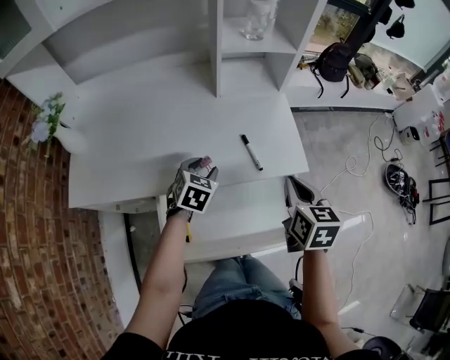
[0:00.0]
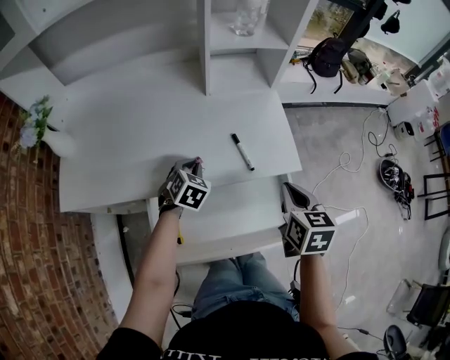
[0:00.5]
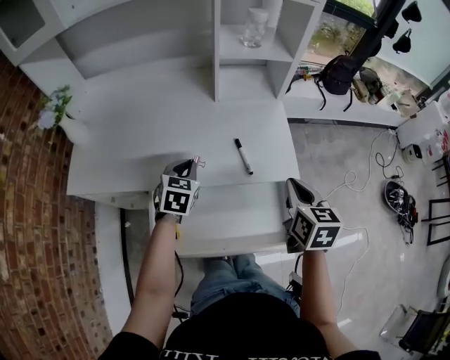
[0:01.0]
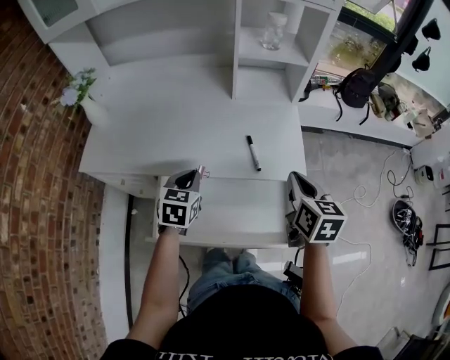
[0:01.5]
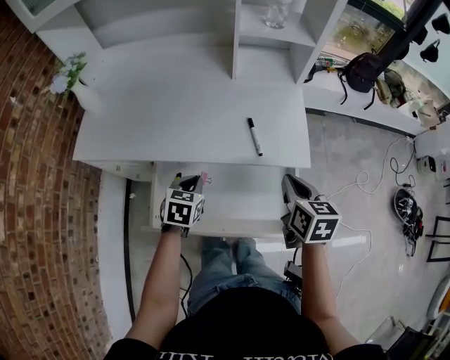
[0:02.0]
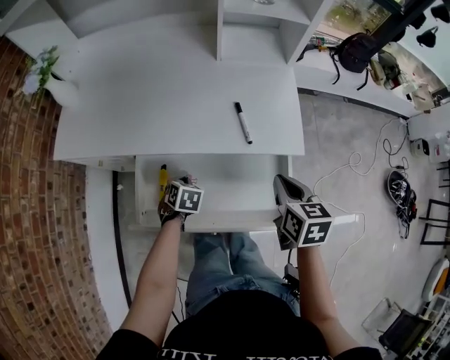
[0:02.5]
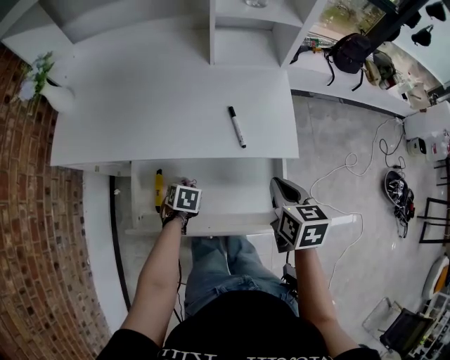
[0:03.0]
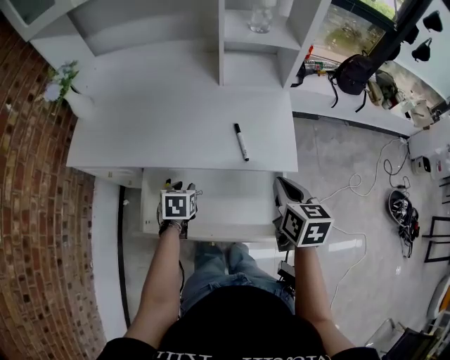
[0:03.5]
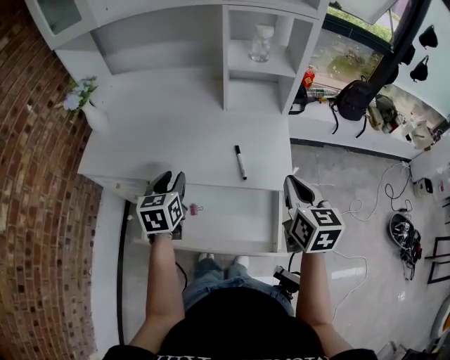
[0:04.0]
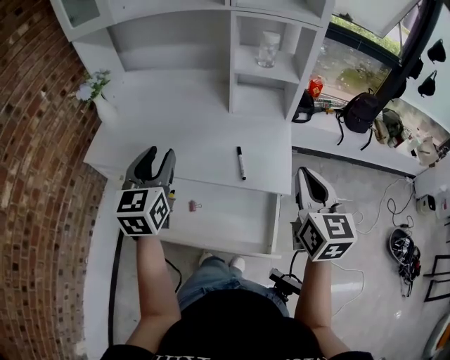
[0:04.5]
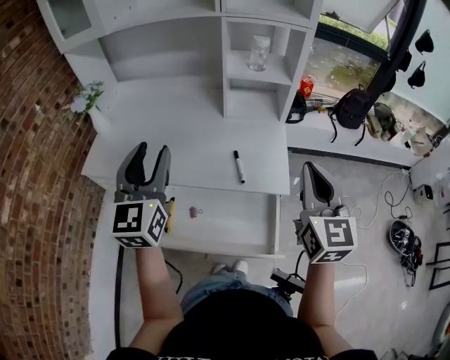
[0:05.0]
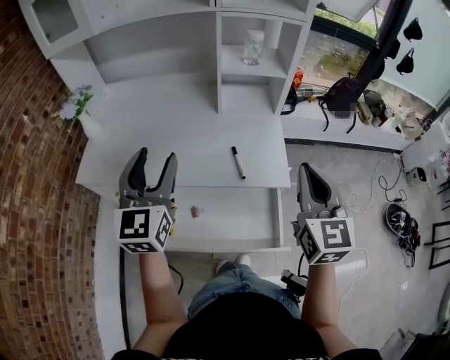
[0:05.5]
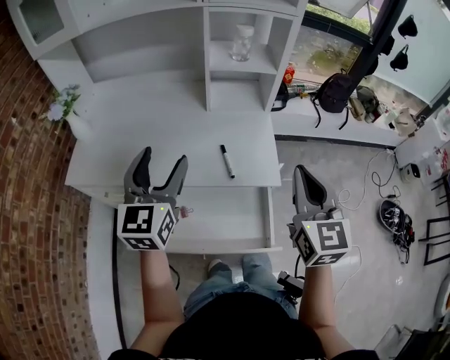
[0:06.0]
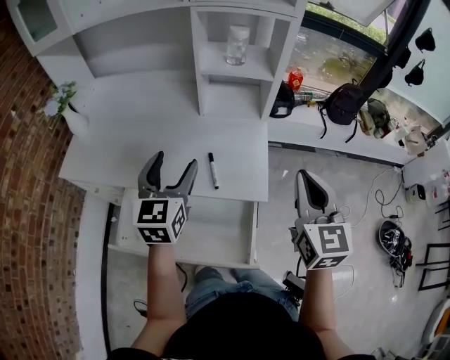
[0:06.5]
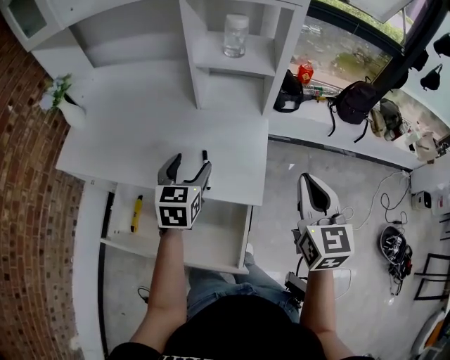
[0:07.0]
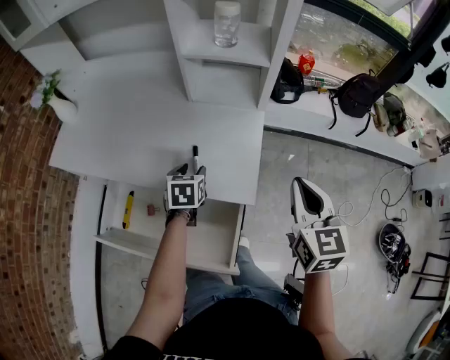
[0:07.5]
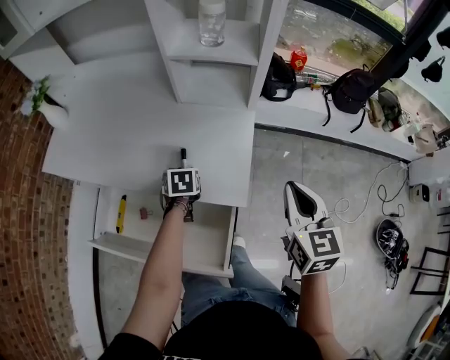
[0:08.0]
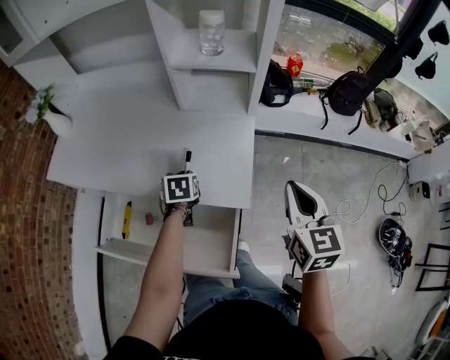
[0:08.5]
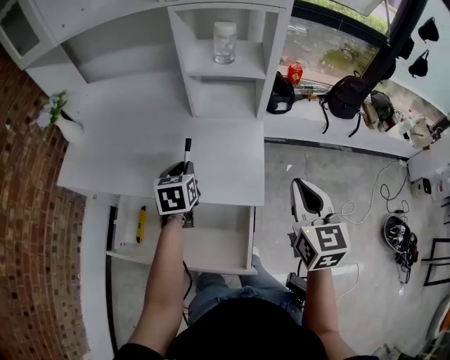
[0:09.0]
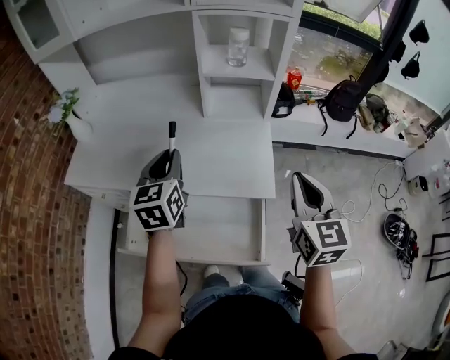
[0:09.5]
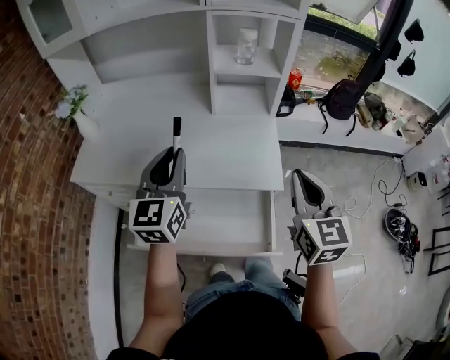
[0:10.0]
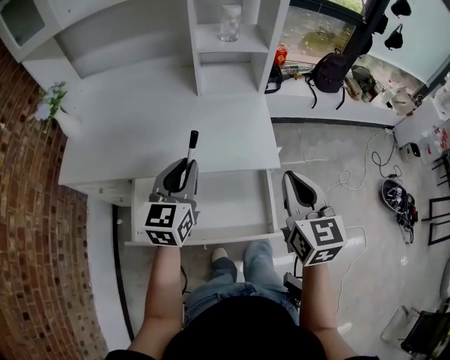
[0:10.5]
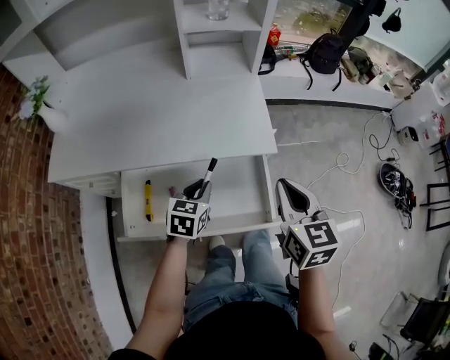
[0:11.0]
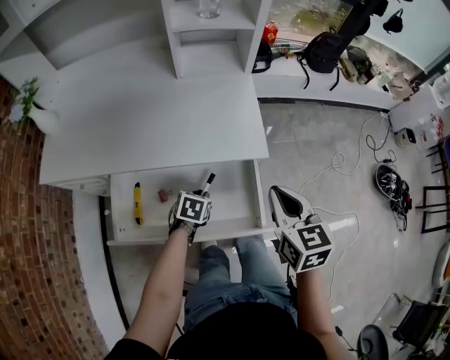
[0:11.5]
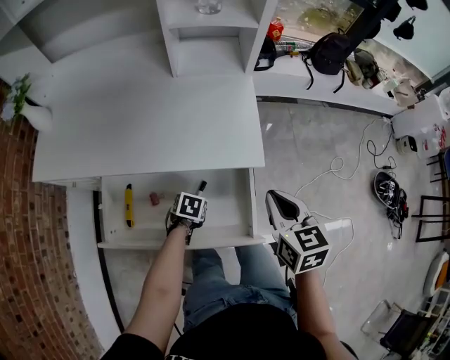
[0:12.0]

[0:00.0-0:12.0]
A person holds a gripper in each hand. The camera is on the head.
0:00.0 to 0:02.0: The left gripper is displaced backward by about 10 cm, changes its angle by roughly 20 degrees, and closes its fingers.
0:02.0 to 0:04.0: The grippers both shift upward by about 10 cm. The left gripper changes its angle by some 30 degrees.
0:04.0 to 0:06.0: The right gripper moves upward, approximately 10 cm, and turns by roughly 20 degrees, while the left gripper moves upward, approximately 15 cm, rotates some 30 degrees, and opens up.
0:06.0 to 0:08.0: The right gripper is displaced to the right, downward and forward by about 25 cm. The left gripper shifts about 35 cm downward and to the right, tilts its fingers approximately 60 degrees downward, and closes.
0:08.0 to 0:10.0: The left gripper shifts approximately 35 cm upward and to the left, and angles its fingers upward, by some 60 degrees, while the right gripper travels to the left, upward and backward by roughly 20 cm.
0:10.0 to 0:12.0: The right gripper shifts about 15 cm downward, and swivels about 30 degrees. The left gripper is displaced downward by some 40 cm, and points its fingers some 70 degrees further downward.

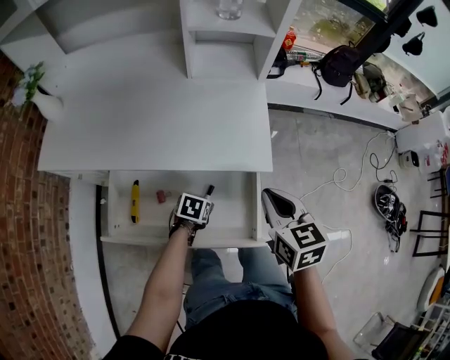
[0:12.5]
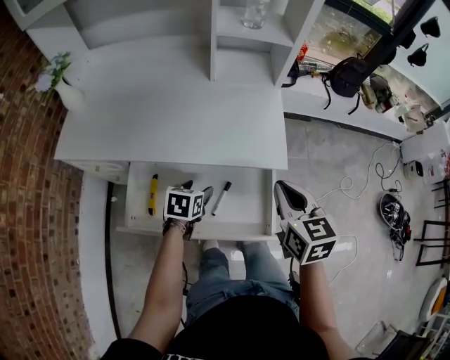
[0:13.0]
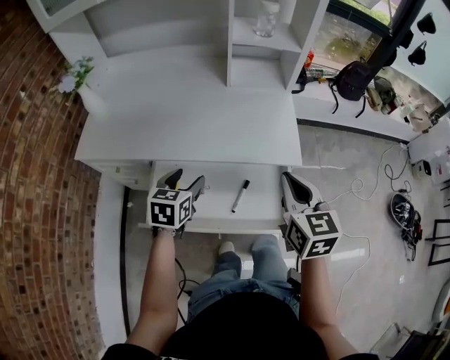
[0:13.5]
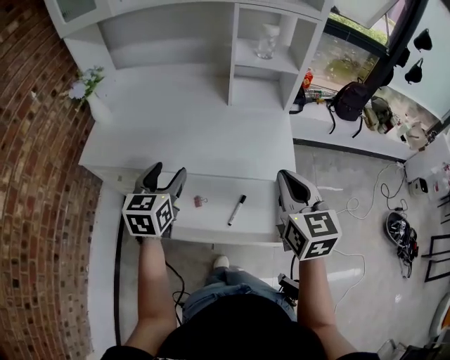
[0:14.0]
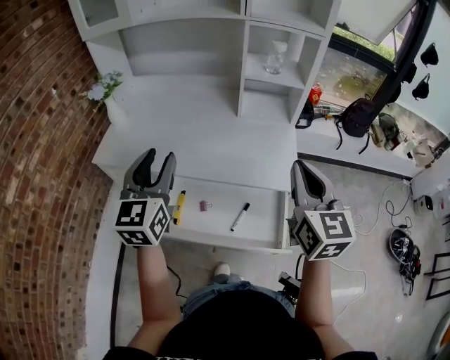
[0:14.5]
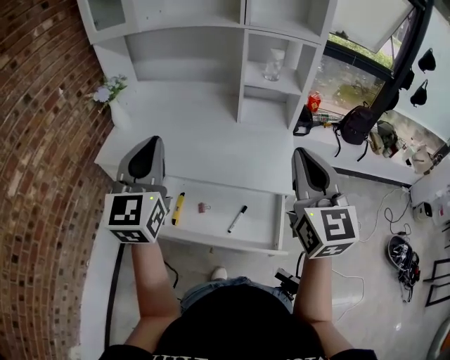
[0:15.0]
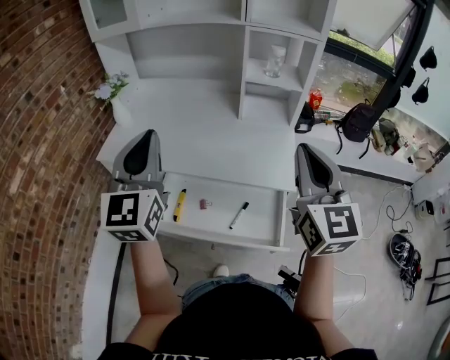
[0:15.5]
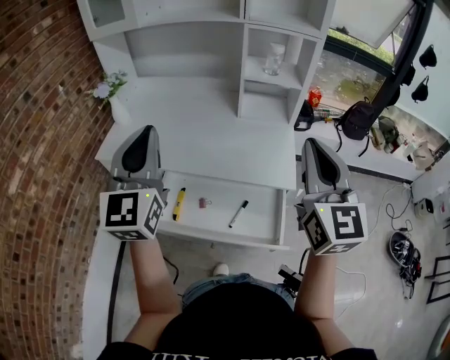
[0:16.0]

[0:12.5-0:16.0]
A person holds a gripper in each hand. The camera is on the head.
0:12.5 to 0:14.5: The left gripper travels upward and to the left by roughly 50 cm, and points its fingers about 60 degrees further upward, while the right gripper is displaced upward by some 20 cm, and rotates approximately 30 degrees.
0:14.5 to 0:16.0: The grippers both shift upward by about 10 cm.

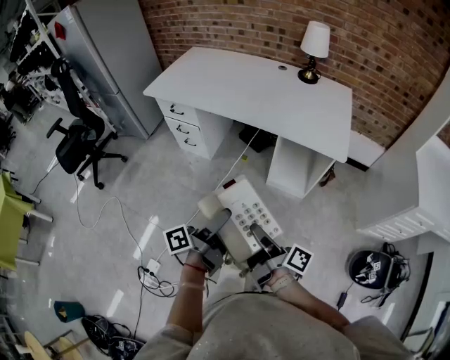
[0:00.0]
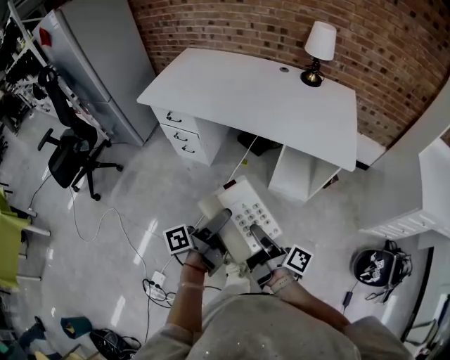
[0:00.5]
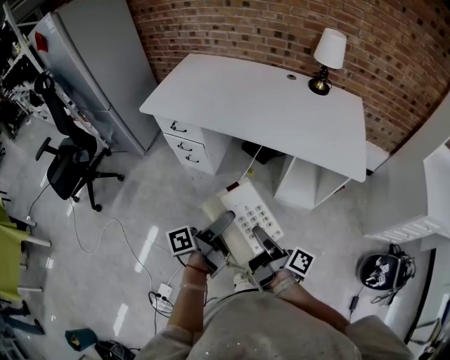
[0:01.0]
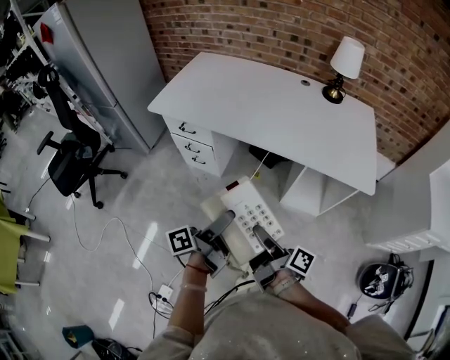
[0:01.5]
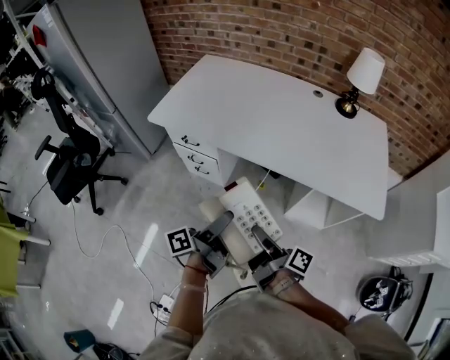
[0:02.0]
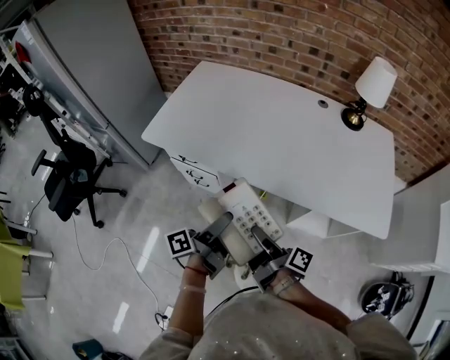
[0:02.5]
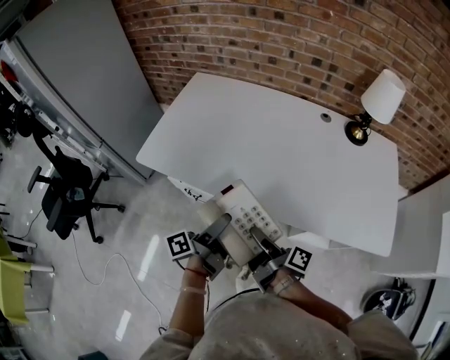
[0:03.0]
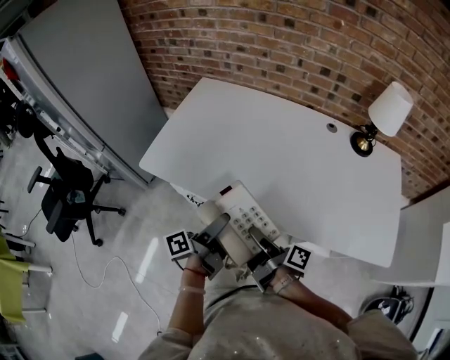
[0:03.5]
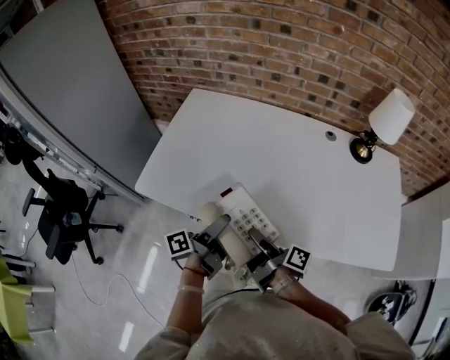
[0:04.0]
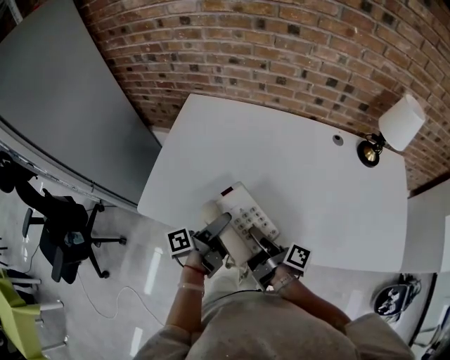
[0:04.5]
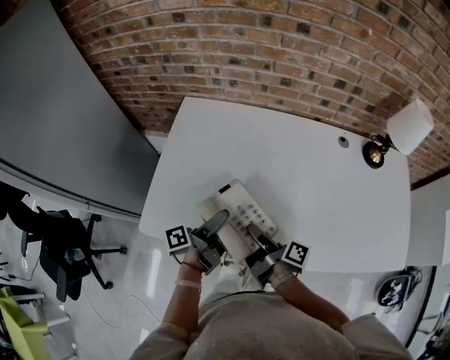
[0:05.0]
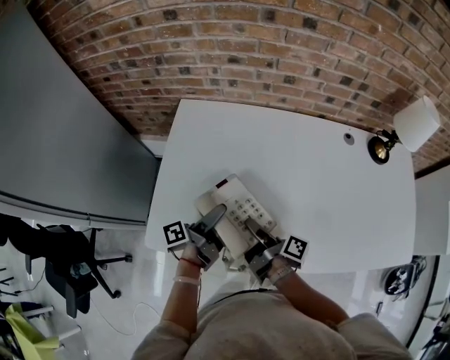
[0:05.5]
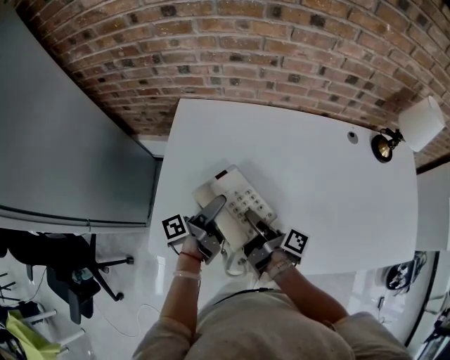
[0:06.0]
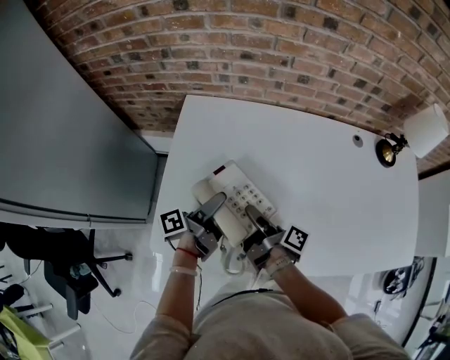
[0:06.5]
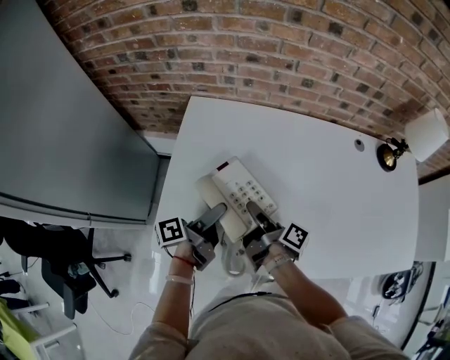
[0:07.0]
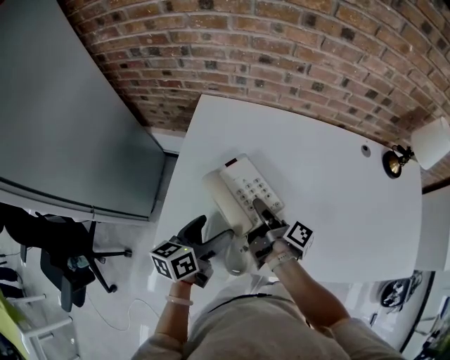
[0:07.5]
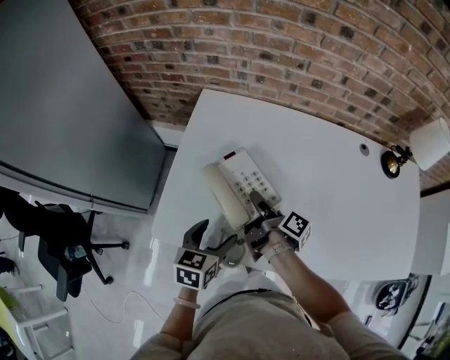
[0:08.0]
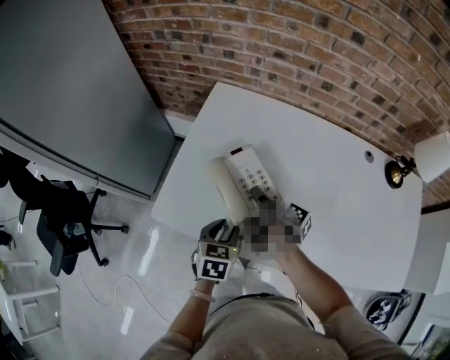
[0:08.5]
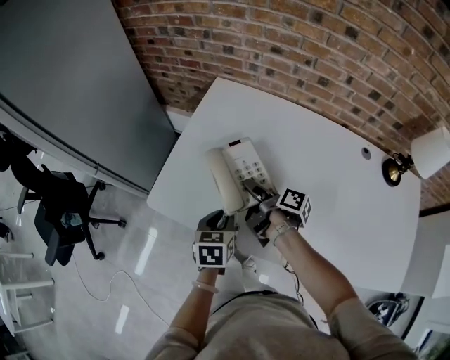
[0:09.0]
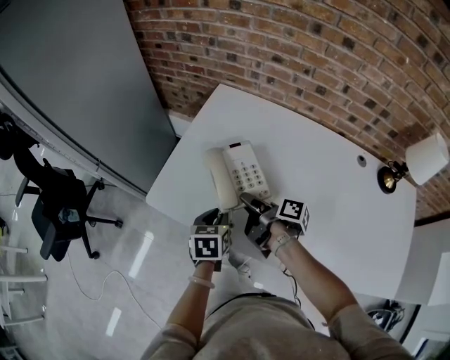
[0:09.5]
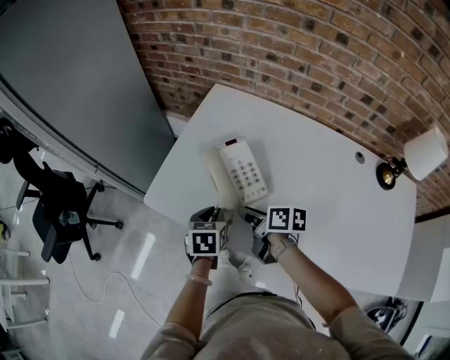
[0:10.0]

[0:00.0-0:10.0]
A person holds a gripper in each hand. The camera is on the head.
0:00.0 to 0:02.0: The left gripper ends up about 30 cm from where it was.
0:02.0 to 0:04.0: The left gripper changes place by about 30 cm.
0:04.0 to 0:06.0: The left gripper changes place by roughly 25 cm.
0:06.0 to 0:08.0: The left gripper ends up some 10 cm from where it was, and twists approximately 70 degrees clockwise, seen from behind.
0:08.0 to 0:10.0: The left gripper rotates approximately 30 degrees, and closes its fingers.

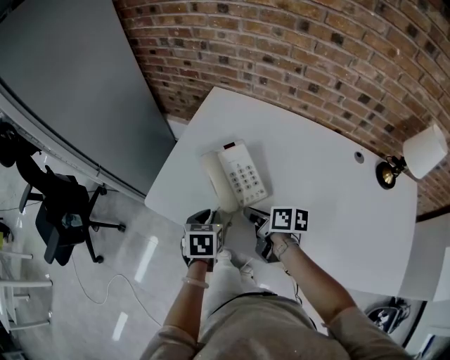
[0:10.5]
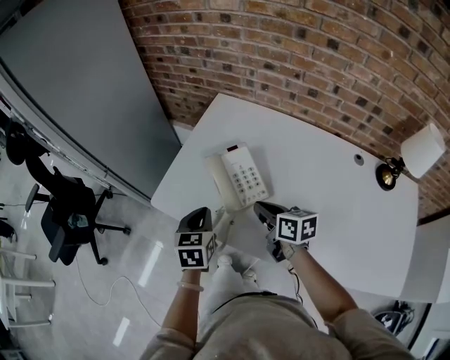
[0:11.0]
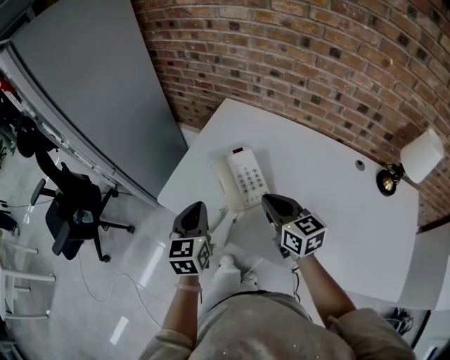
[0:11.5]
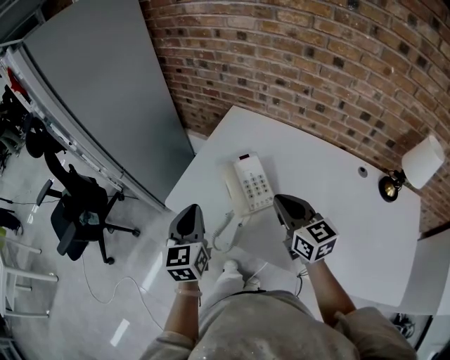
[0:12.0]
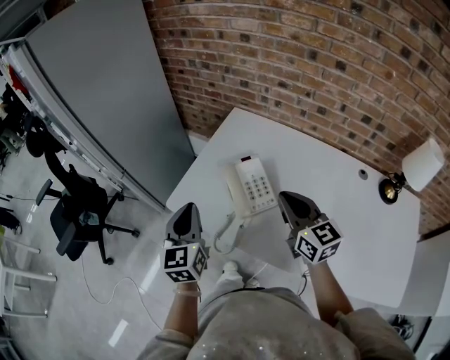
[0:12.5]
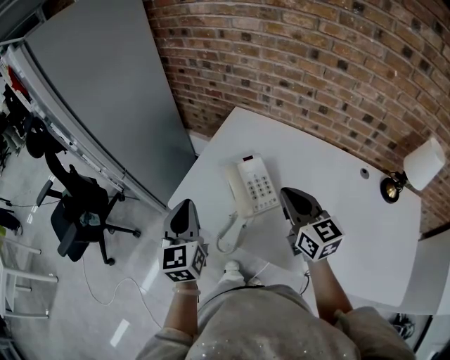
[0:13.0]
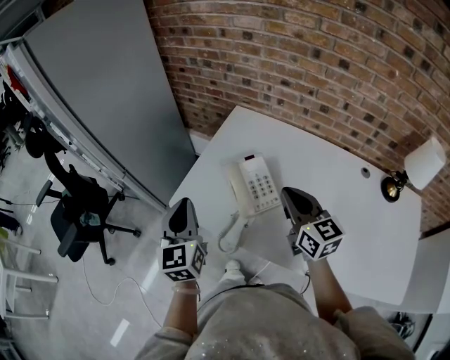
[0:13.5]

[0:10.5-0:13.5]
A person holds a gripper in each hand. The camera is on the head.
0:10.5 to 0:12.0: The left gripper is displaced upward by some 15 cm, and points its fingers some 40 degrees further upward.
0:12.0 to 0:13.5: The left gripper changes place by roughly 5 cm.
